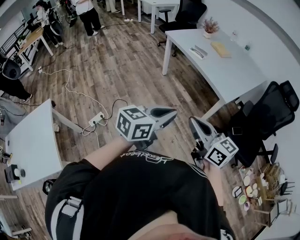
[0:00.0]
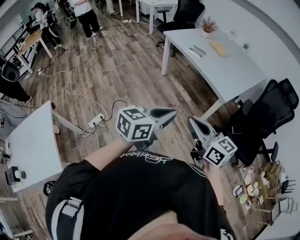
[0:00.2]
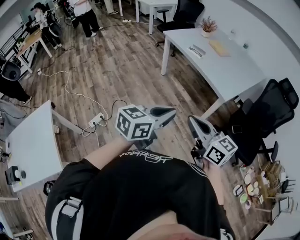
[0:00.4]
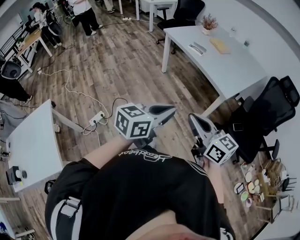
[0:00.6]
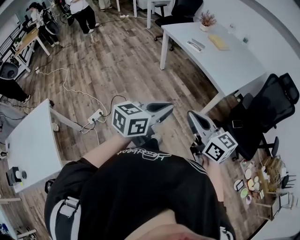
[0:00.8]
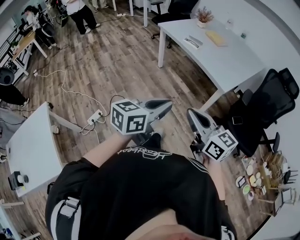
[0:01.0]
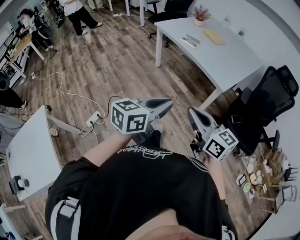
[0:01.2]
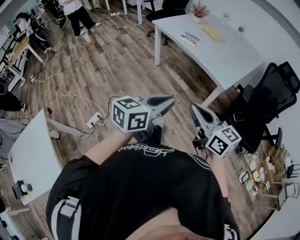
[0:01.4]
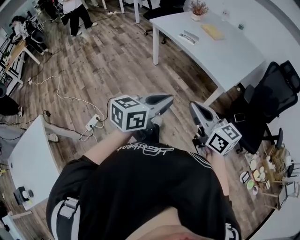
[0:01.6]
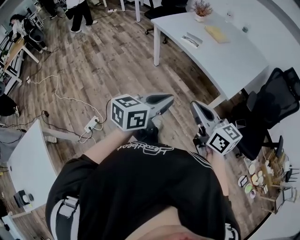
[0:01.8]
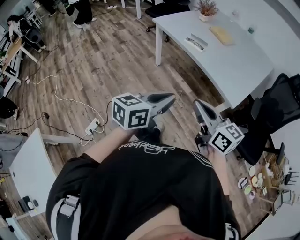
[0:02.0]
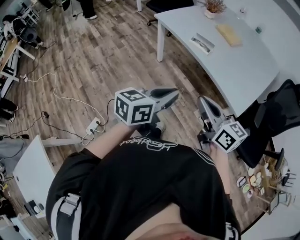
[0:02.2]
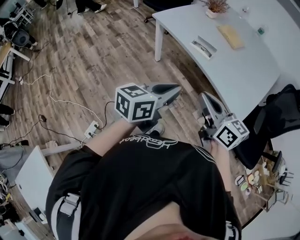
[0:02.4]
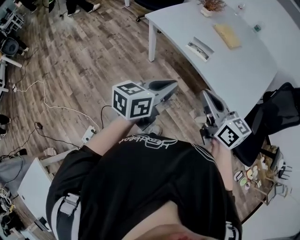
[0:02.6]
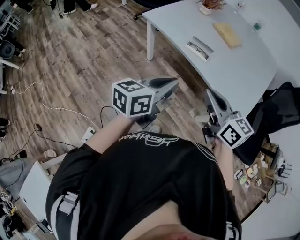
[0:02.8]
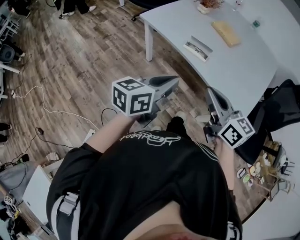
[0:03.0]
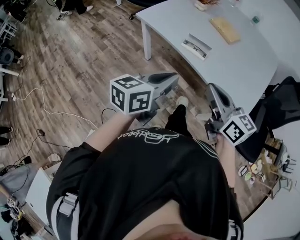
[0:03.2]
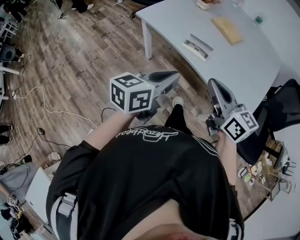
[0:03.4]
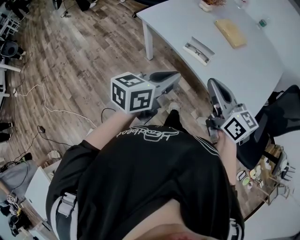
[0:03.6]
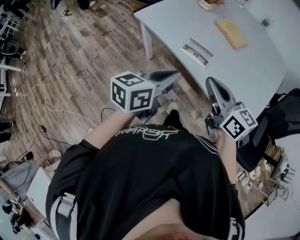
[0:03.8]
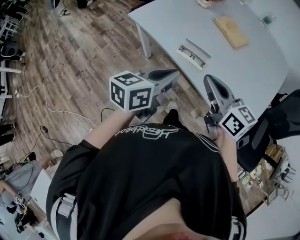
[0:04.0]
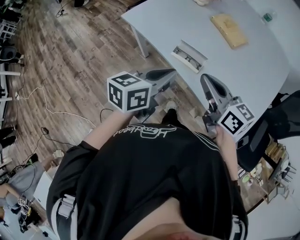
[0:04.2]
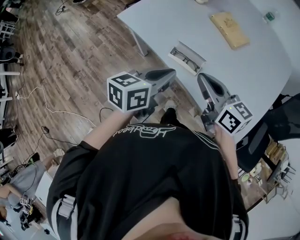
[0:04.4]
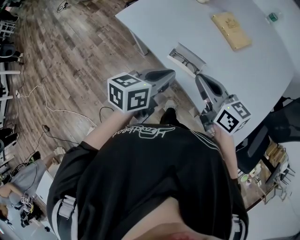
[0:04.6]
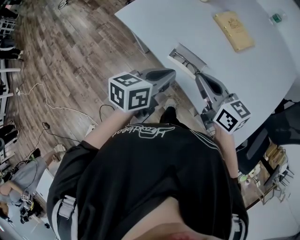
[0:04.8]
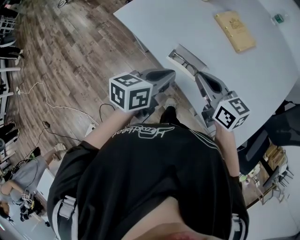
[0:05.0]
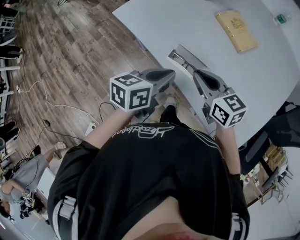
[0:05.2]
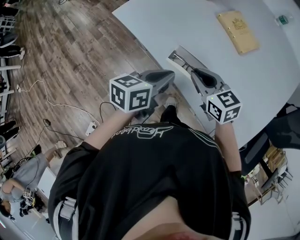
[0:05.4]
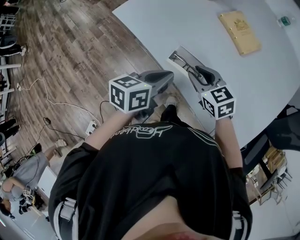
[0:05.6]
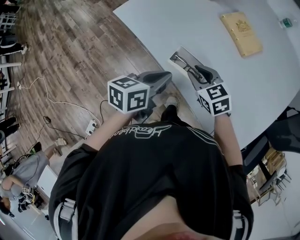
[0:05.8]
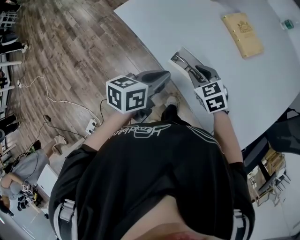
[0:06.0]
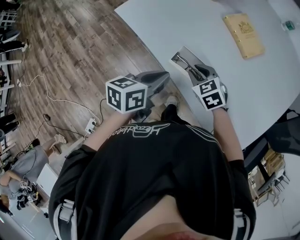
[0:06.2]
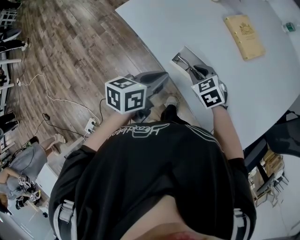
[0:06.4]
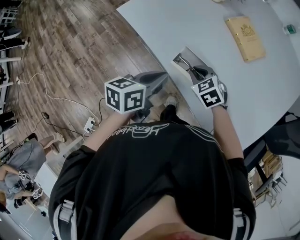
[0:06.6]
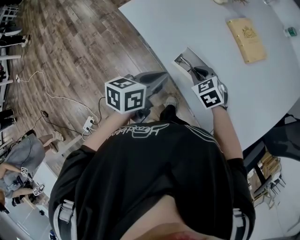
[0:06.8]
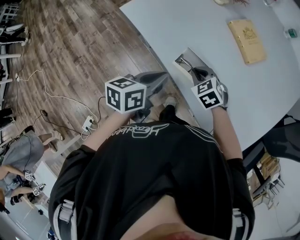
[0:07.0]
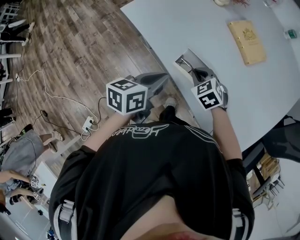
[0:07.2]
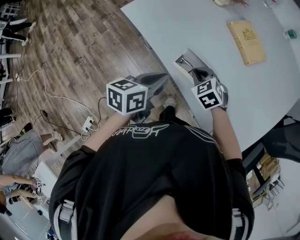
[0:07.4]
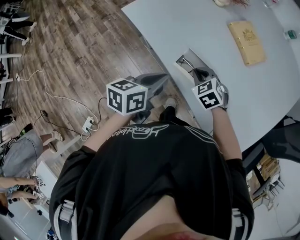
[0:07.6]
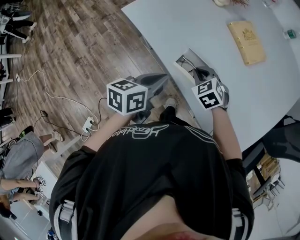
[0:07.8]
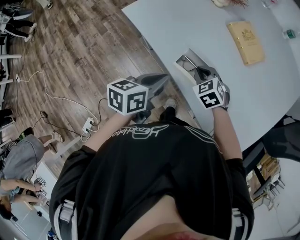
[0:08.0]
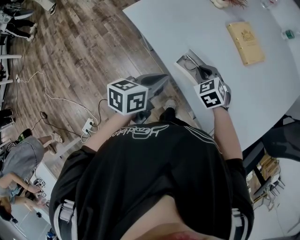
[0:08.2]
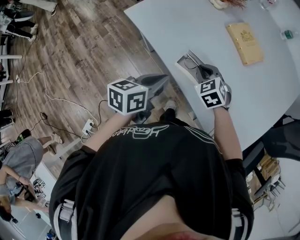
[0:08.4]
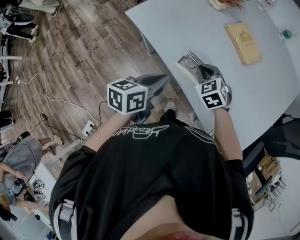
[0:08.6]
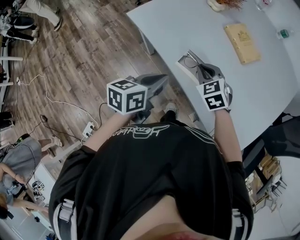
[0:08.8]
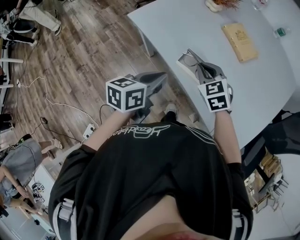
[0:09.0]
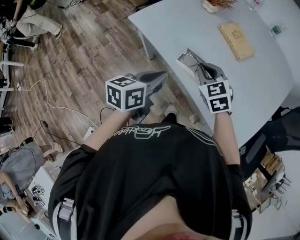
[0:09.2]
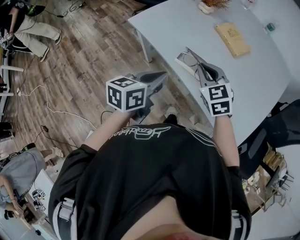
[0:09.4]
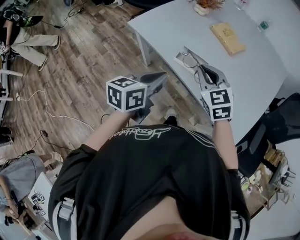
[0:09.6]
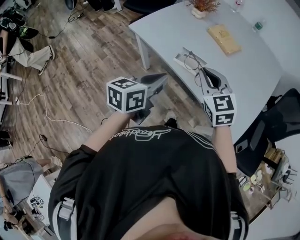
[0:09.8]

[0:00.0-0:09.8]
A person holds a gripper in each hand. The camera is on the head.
0:00.0 to 0:01.4: Both grippers travel together forward, approximately 5 cm.
0:01.4 to 0:02.8: The two grippers travel together, forward, approximately 40 cm.
0:02.8 to 0:04.2: Both grippers travel together forward, some 20 cm.
0:04.2 to 0:05.6: The left gripper moves downward and forward, some 10 cm, while the right gripper is displaced downward and forward by some 20 cm, and changes its angle by approximately 30 degrees.
0:05.6 to 0:07.0: The right gripper shifts roughly 10 cm downward, and swivels roughly 30 degrees.
0:07.0 to 0:08.4: The grippers make only small movements.
0:08.4 to 0:09.8: The left gripper moves backward and upward, approximately 15 cm. The right gripper travels upward and backward by about 25 cm, and rotates some 30 degrees.

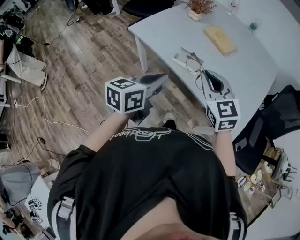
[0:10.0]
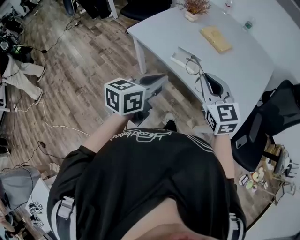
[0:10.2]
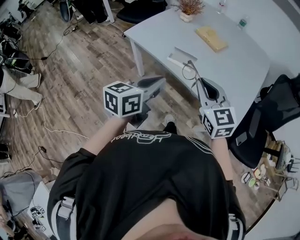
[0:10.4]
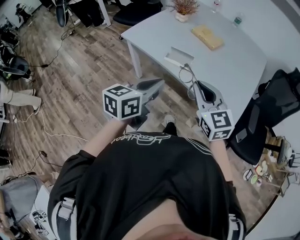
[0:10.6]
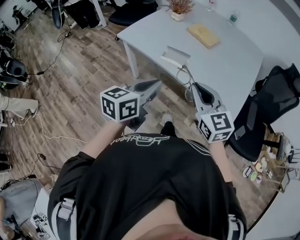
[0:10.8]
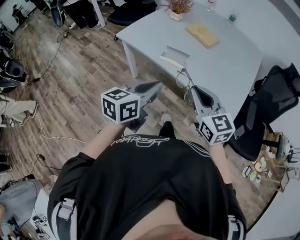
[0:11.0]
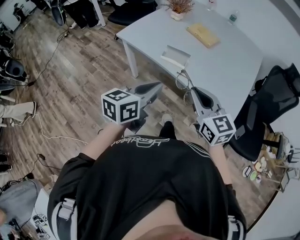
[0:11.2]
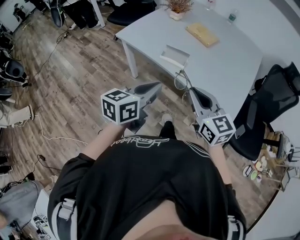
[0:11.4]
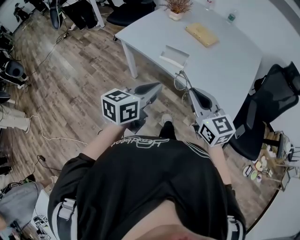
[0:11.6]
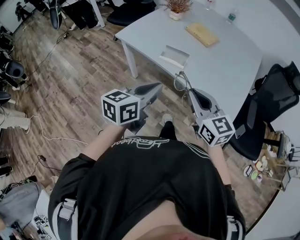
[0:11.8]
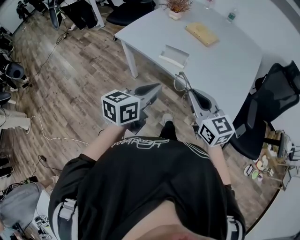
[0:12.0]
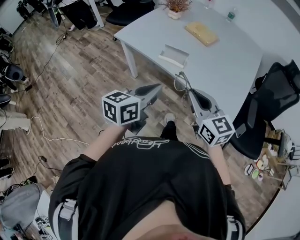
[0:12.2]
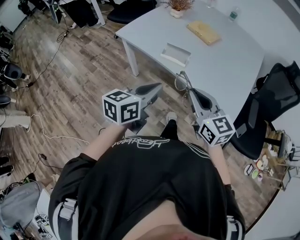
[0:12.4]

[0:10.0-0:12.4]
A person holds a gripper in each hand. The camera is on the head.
0:10.0 to 0:11.2: The left gripper goes some 5 cm backward. Meanwhile the right gripper goes some 10 cm backward.
0:11.2 to 0:12.4: Both grippers stay about where they are.

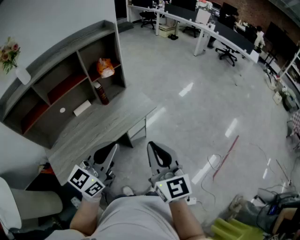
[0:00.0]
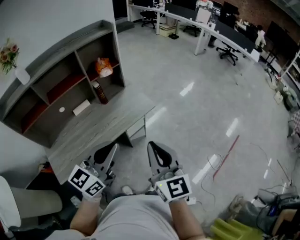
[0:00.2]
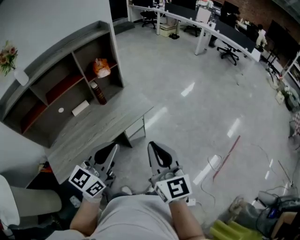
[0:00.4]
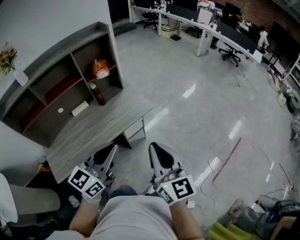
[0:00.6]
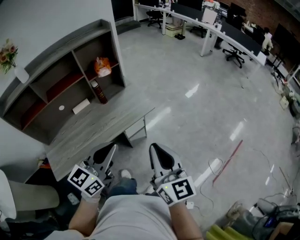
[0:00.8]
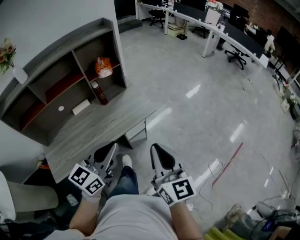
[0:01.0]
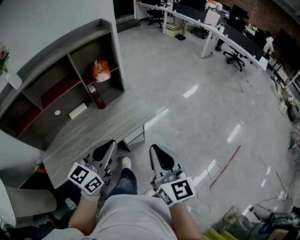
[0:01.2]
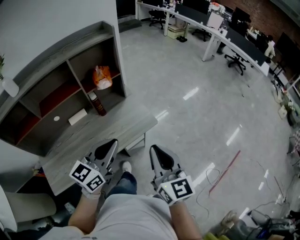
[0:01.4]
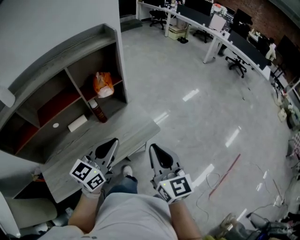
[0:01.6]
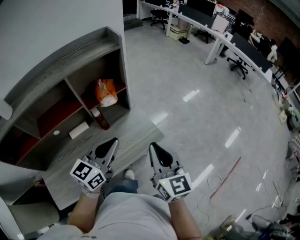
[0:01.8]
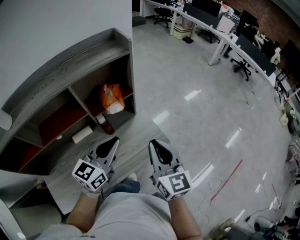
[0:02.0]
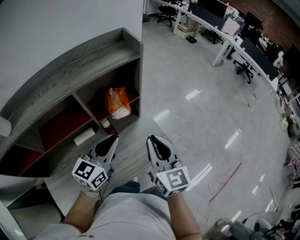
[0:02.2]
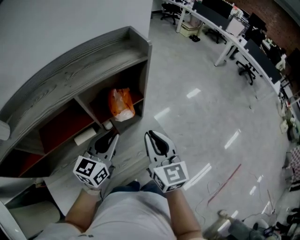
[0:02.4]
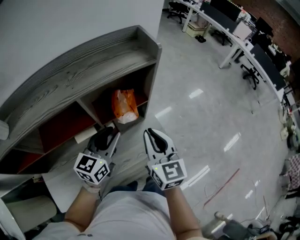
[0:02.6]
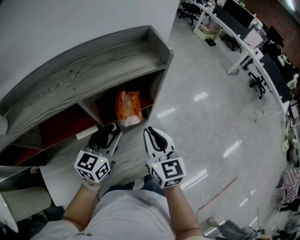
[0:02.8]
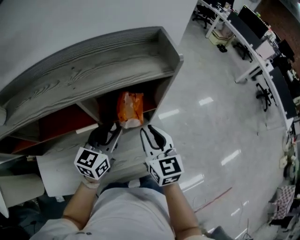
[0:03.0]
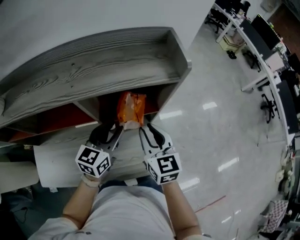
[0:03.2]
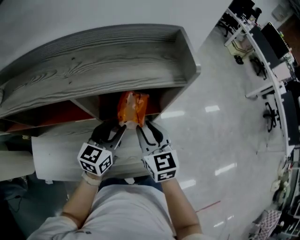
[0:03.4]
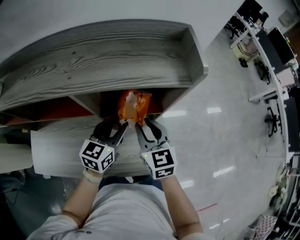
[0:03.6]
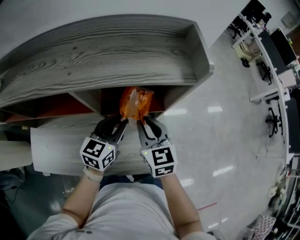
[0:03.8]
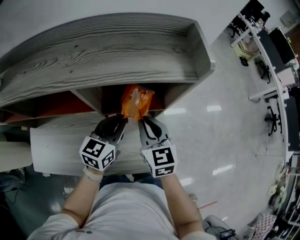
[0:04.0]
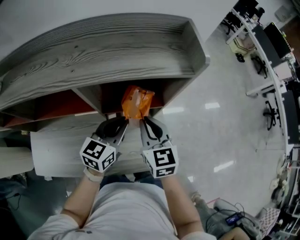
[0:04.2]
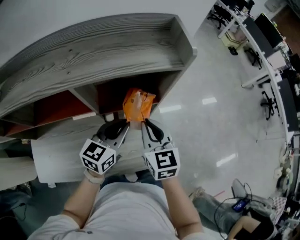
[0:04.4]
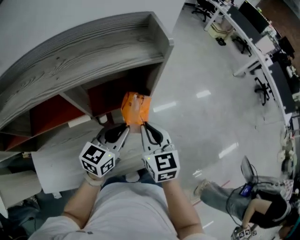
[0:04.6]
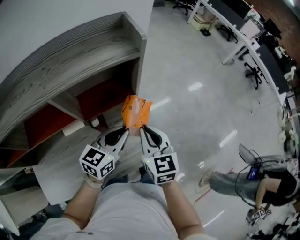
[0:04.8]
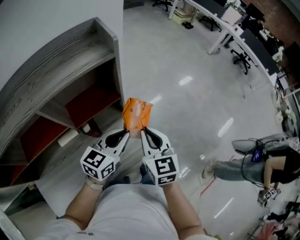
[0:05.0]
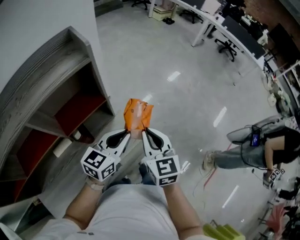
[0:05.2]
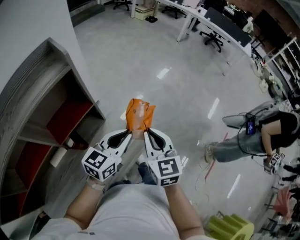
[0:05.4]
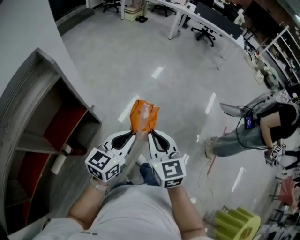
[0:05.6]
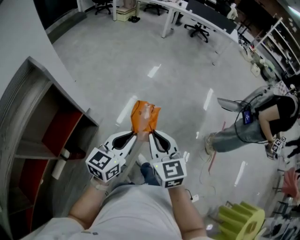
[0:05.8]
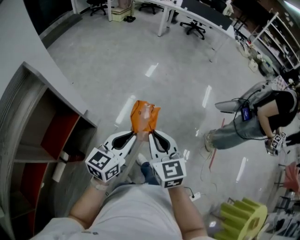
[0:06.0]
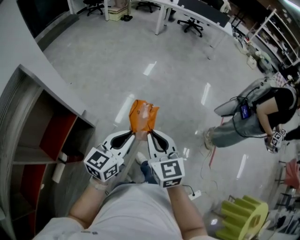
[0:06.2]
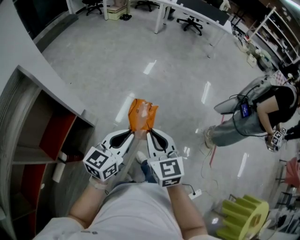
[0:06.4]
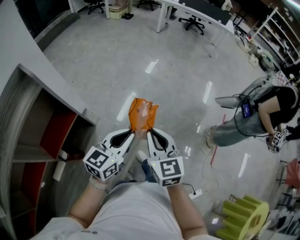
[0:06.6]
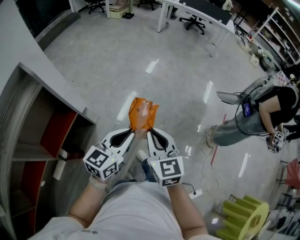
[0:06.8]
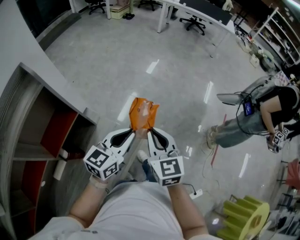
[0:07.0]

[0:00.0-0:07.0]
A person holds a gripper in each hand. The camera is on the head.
0:00.0 to 0:01.4: The two grippers go roughly 15 cm forward.
0:01.4 to 0:02.8: The two grippers go approximately 40 cm forward and to the left. The left gripper rotates some 20 degrees, and opens up.
0:02.8 to 0:04.2: The left gripper travels downward by about 5 cm; the right gripper goes some 10 cm forward and downward.
0:04.2 to 0:05.6: The left gripper ends up about 25 cm from where it was, and changes its angle by roughly 50 degrees. The right gripper changes place by approximately 30 cm, and changes its angle by some 50 degrees.
0:05.6 to 0:07.0: The grippers make only small movements.

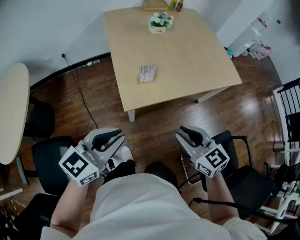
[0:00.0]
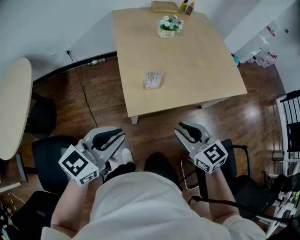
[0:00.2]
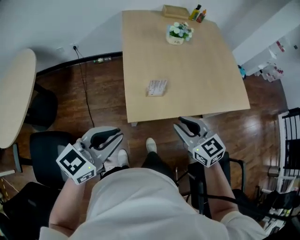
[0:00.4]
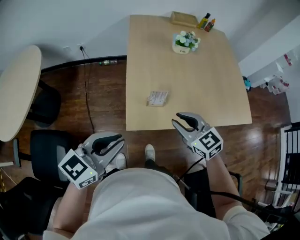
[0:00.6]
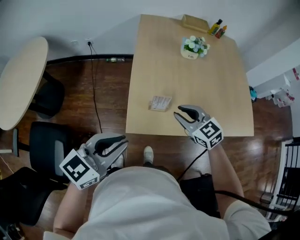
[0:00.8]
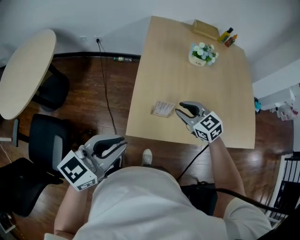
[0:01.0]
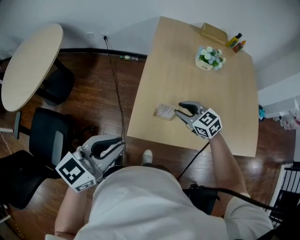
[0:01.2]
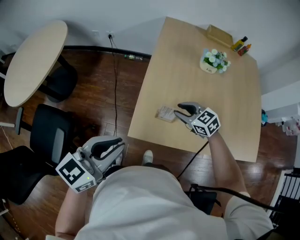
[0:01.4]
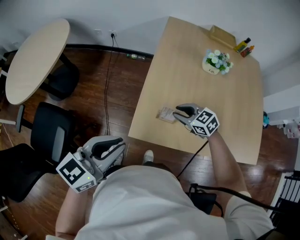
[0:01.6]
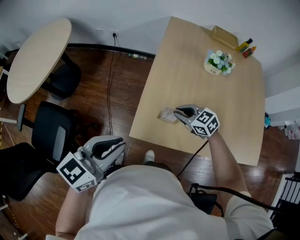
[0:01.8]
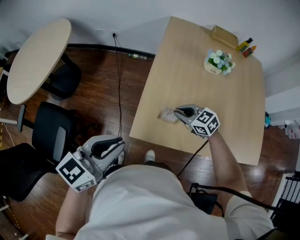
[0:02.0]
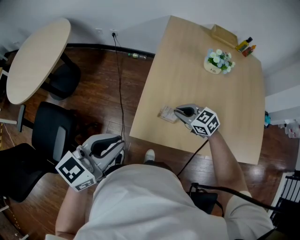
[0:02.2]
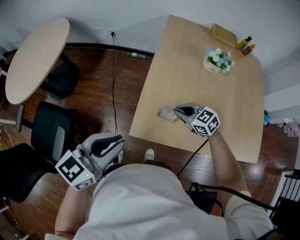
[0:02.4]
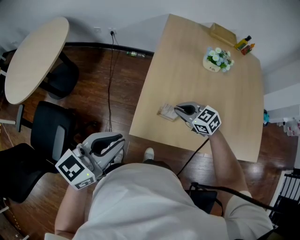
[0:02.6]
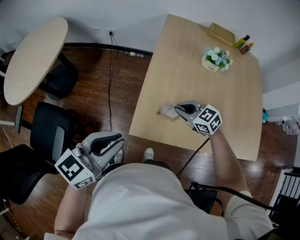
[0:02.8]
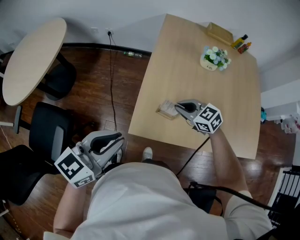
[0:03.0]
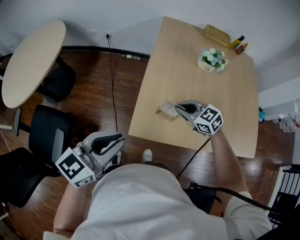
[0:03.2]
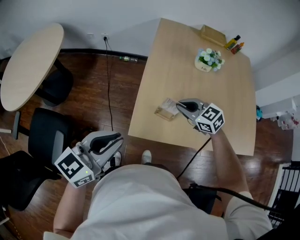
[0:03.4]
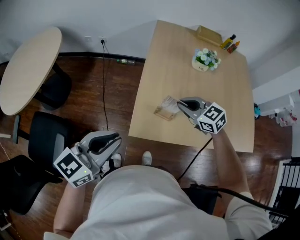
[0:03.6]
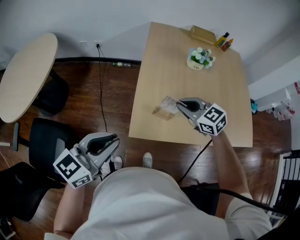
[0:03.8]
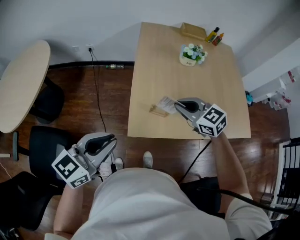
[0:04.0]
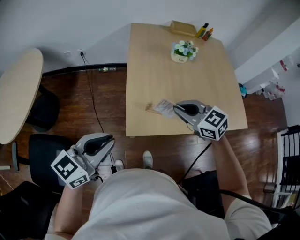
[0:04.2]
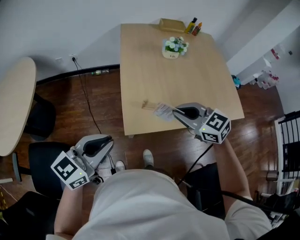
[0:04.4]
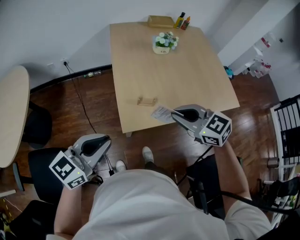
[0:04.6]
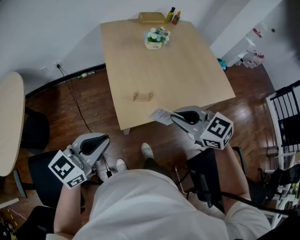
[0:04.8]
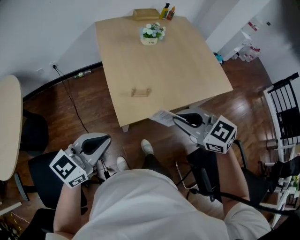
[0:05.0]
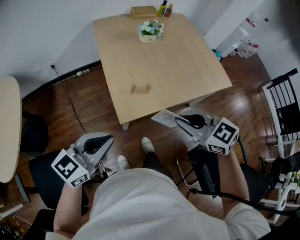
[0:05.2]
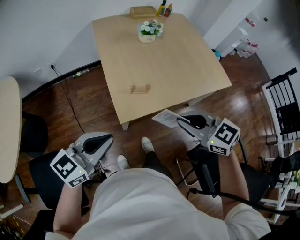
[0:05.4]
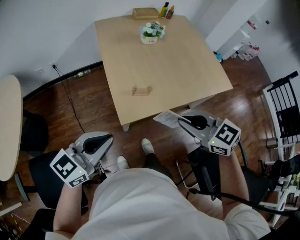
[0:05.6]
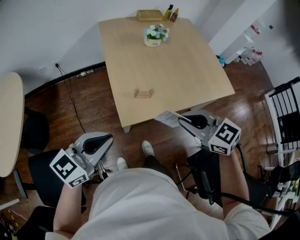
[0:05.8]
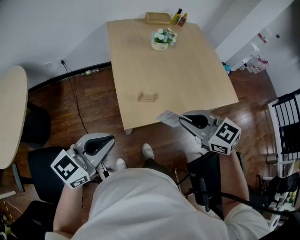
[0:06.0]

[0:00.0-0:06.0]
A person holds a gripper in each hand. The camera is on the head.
0:00.0 to 0:01.6: The right gripper shifts by about 35 cm, and rotates about 50 degrees, while the left gripper changes place by some 15 cm, and rotates about 30 degrees.
0:01.6 to 0:03.0: The right gripper closes.
0:03.0 to 0:04.4: The left gripper goes roughly 5 cm to the left; the right gripper heads upward and backward, covering about 20 cm, and swivels about 20 degrees.
0:04.4 to 0:06.0: The right gripper travels backward by roughly 10 cm.
